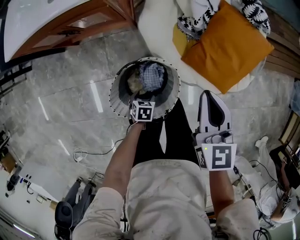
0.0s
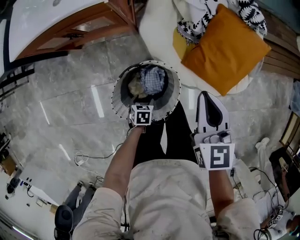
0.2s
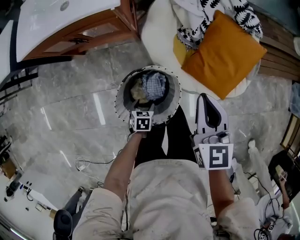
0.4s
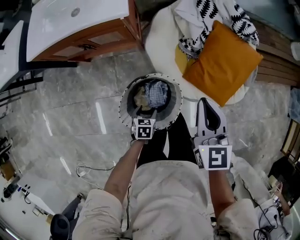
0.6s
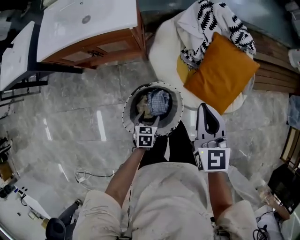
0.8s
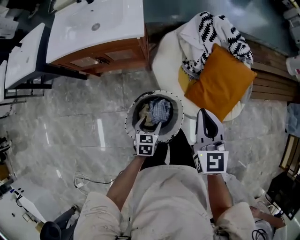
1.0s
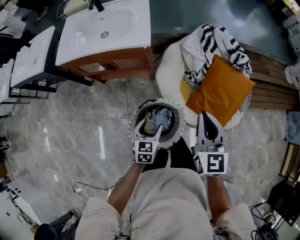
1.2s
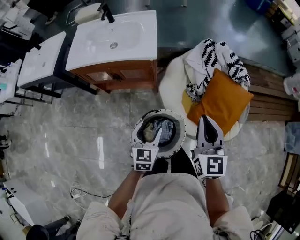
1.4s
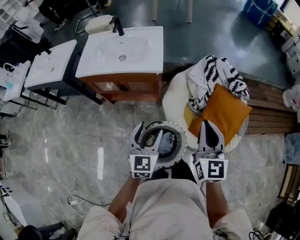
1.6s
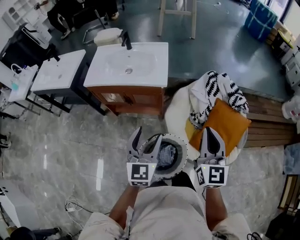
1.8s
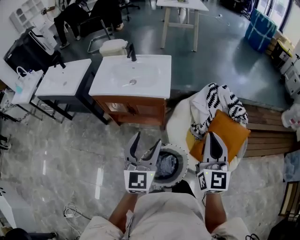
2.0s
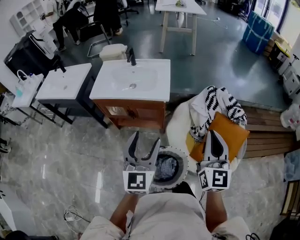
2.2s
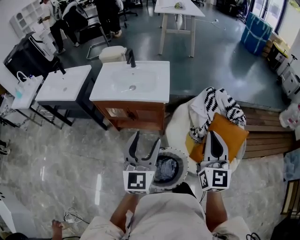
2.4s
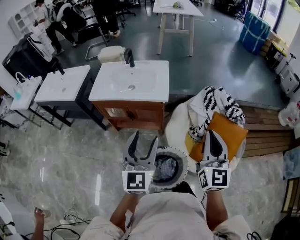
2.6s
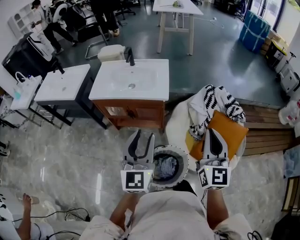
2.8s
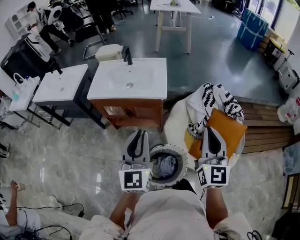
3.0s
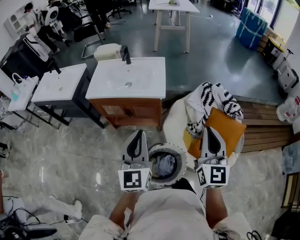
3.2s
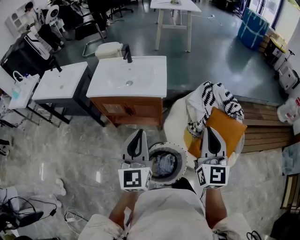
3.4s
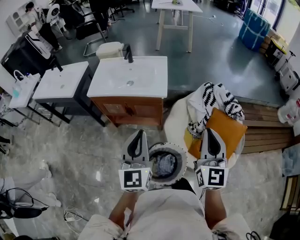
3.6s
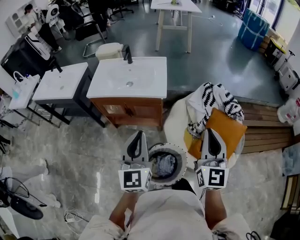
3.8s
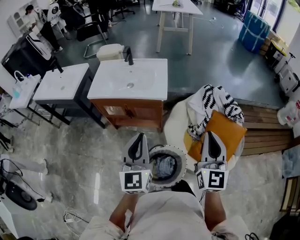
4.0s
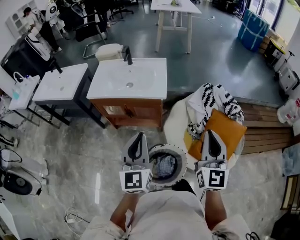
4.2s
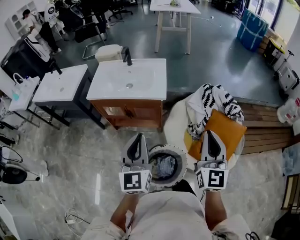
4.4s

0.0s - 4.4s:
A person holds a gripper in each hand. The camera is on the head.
0.0s - 1.4s: The left gripper moves upward, roughly 40 cm, and tips its fingers upward by roughly 50 degrees. The right gripper is displaced upward by some 20 cm.
1.4s - 3.0s: The left gripper is displaced upward by some 25 cm, angles its fingers upward, by roughly 30 degrees, and closes up. Meanwhile the right gripper heads upward, covering roughly 15 cm.
3.0s - 4.4s: There are only small adjustments of the grippers.

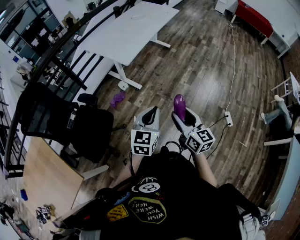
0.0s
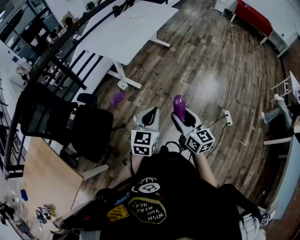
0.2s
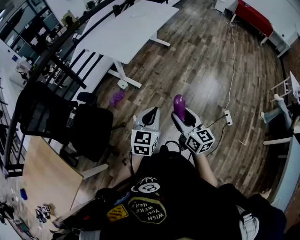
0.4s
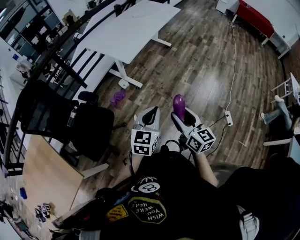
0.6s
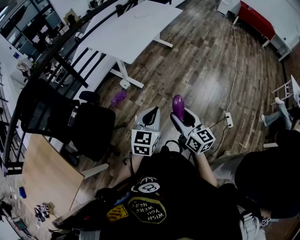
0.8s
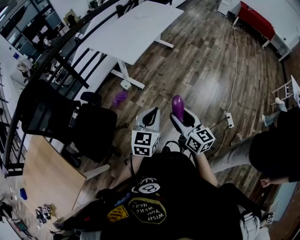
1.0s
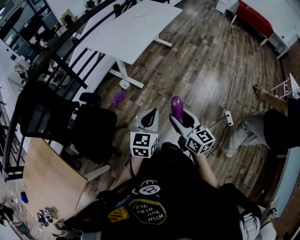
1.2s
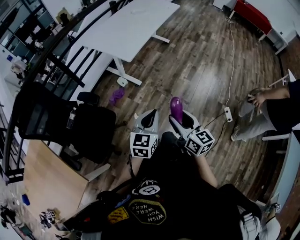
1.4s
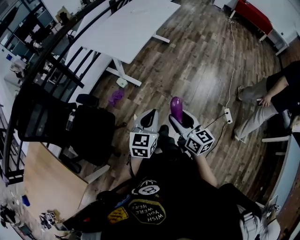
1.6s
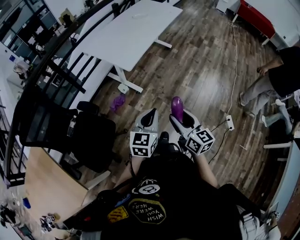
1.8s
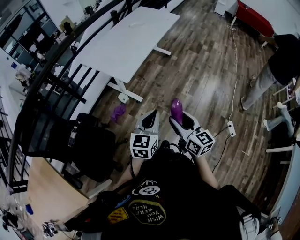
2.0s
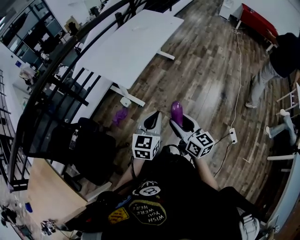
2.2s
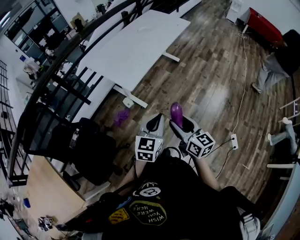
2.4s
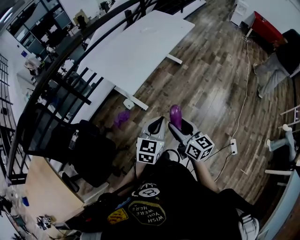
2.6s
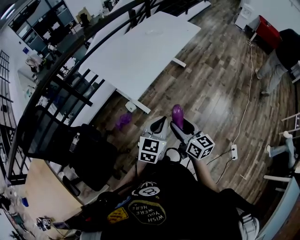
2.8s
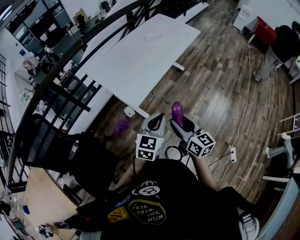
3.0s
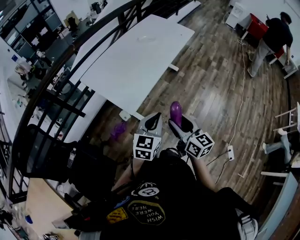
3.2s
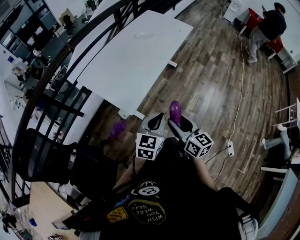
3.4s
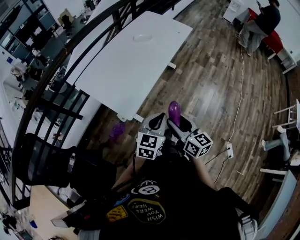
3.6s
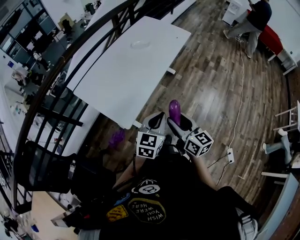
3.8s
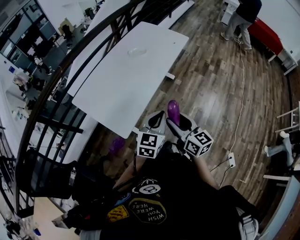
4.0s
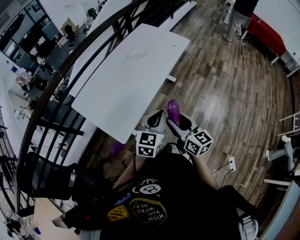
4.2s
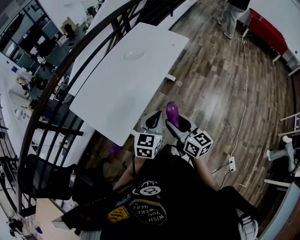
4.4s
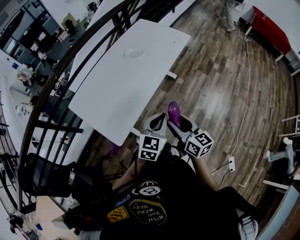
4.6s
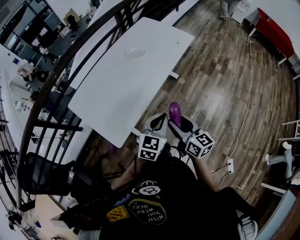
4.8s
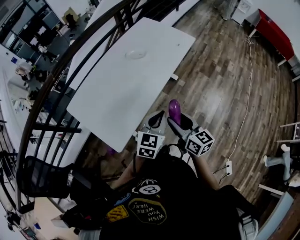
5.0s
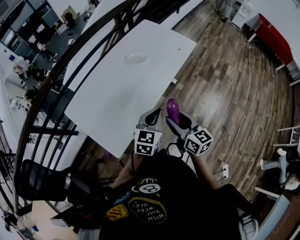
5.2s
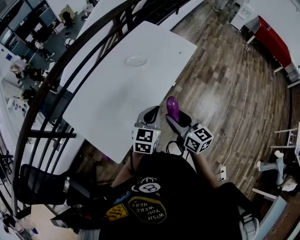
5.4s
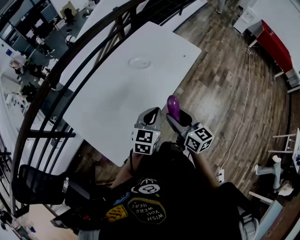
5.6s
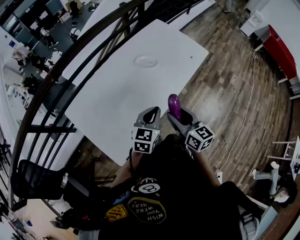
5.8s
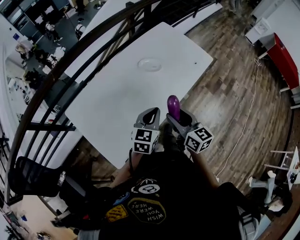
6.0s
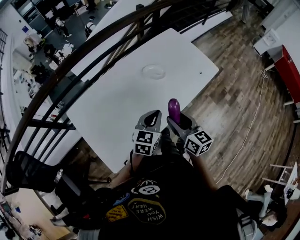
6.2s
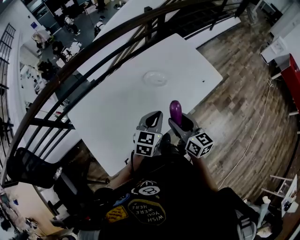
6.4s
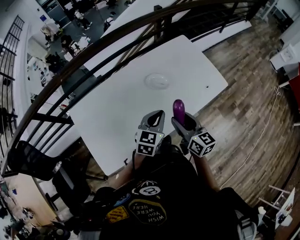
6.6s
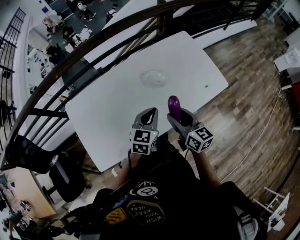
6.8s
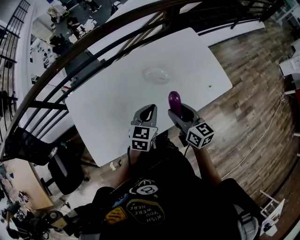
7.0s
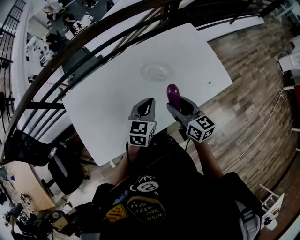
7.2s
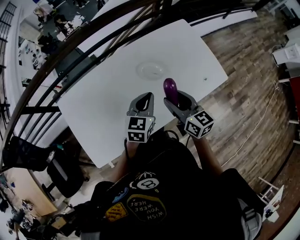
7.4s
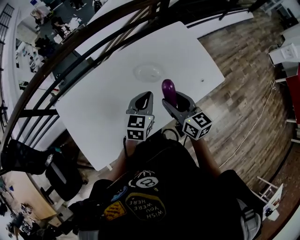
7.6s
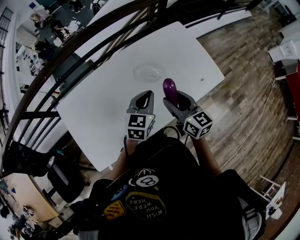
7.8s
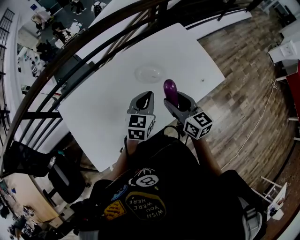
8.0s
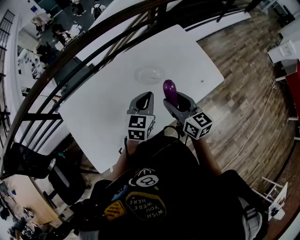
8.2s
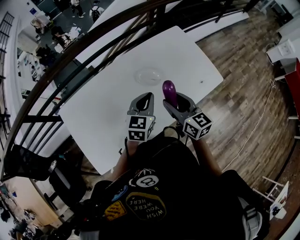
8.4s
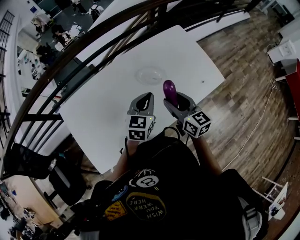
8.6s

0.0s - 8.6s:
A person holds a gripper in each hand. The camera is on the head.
0.0s - 1.4s: Both grippers move to the left, about 5 cm.
1.4s - 2.8s: The two grippers go about 30 cm forward.
2.8s - 4.4s: The grippers both shift forward by some 35 cm.
4.4s - 5.8s: The grippers both shift forward by roughly 25 cm.
5.8s - 7.2s: Both grippers move forward, about 20 cm. The right gripper rotates some 20 degrees, while the left gripper swivels roughly 20 degrees.
7.2s - 8.6s: The grippers move only a little.

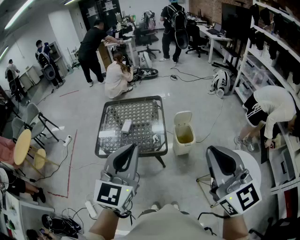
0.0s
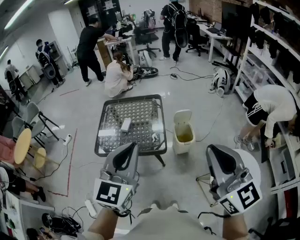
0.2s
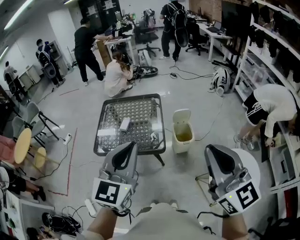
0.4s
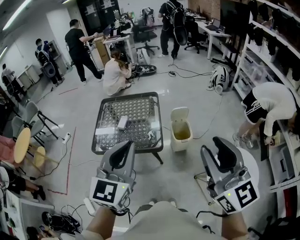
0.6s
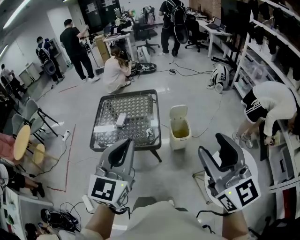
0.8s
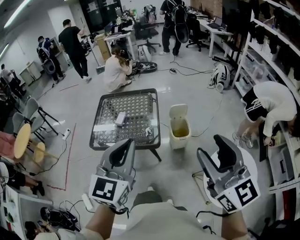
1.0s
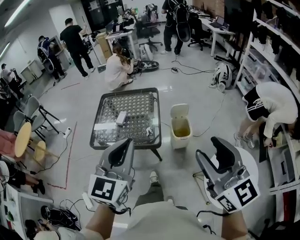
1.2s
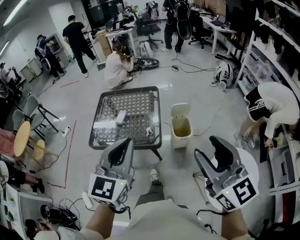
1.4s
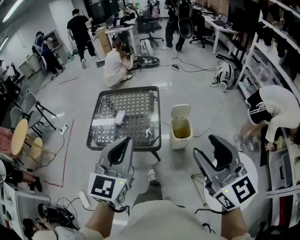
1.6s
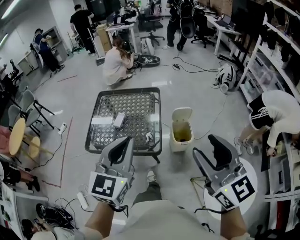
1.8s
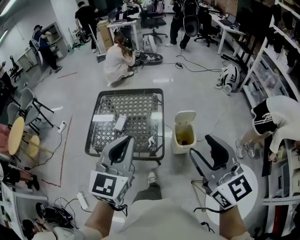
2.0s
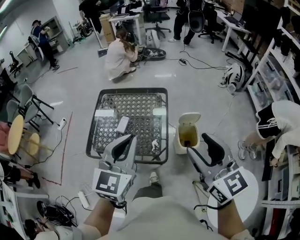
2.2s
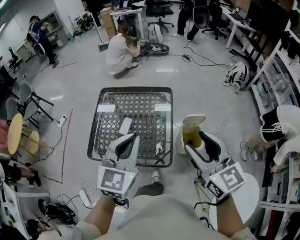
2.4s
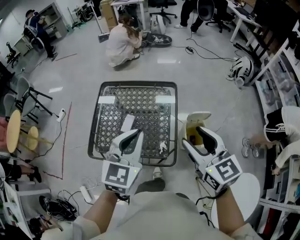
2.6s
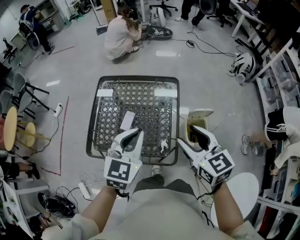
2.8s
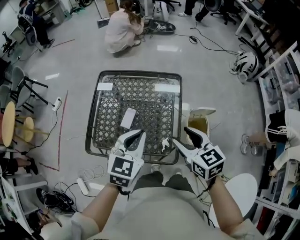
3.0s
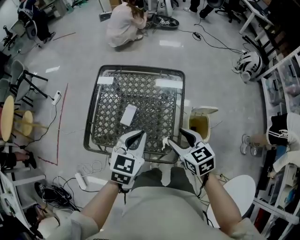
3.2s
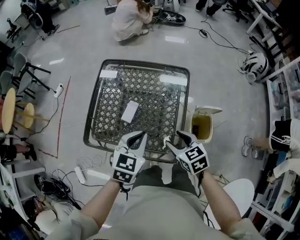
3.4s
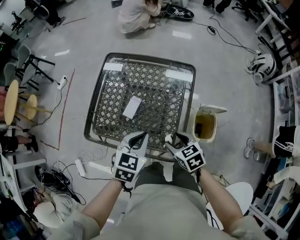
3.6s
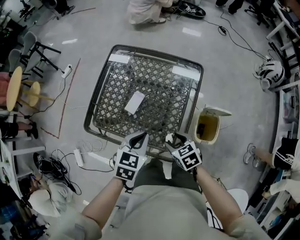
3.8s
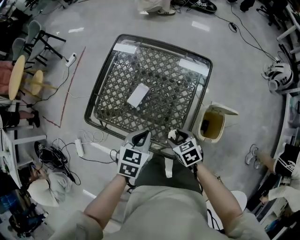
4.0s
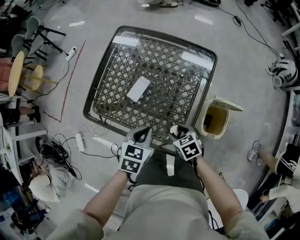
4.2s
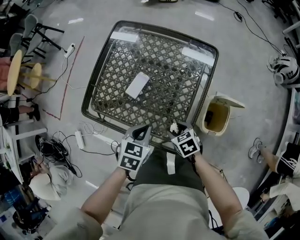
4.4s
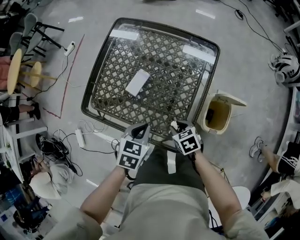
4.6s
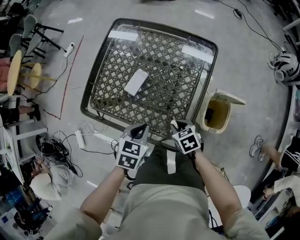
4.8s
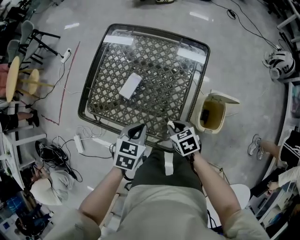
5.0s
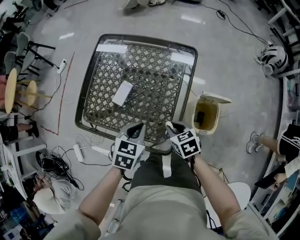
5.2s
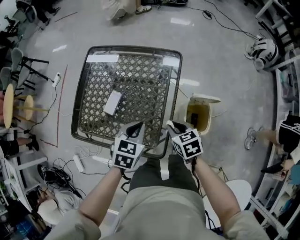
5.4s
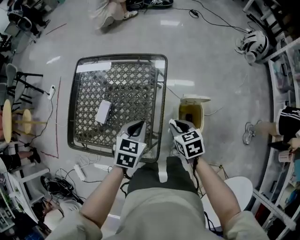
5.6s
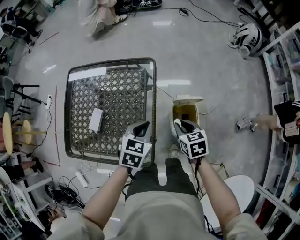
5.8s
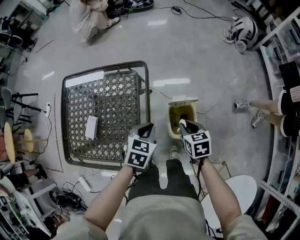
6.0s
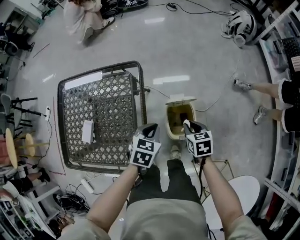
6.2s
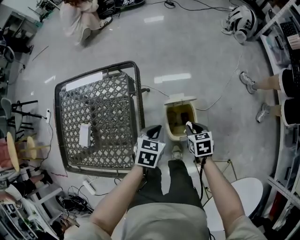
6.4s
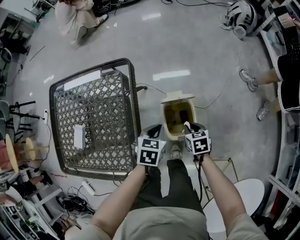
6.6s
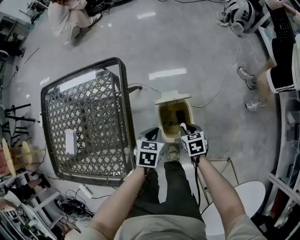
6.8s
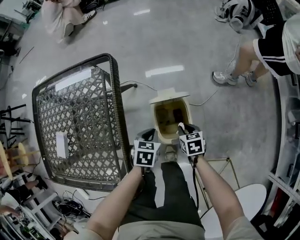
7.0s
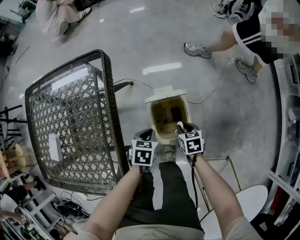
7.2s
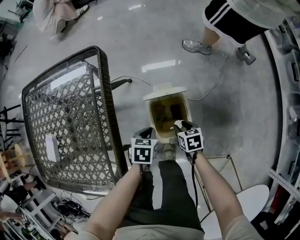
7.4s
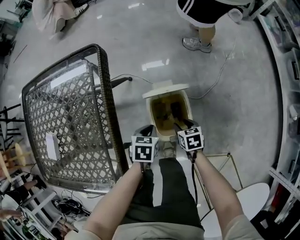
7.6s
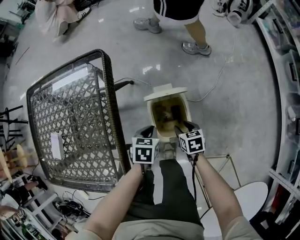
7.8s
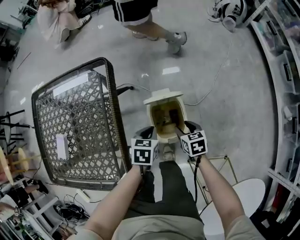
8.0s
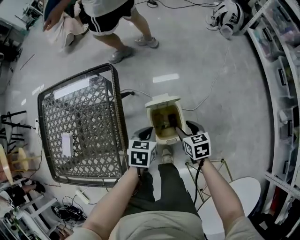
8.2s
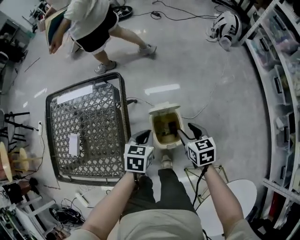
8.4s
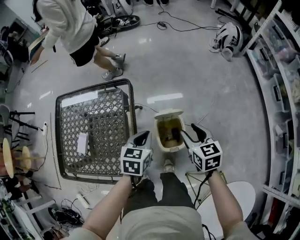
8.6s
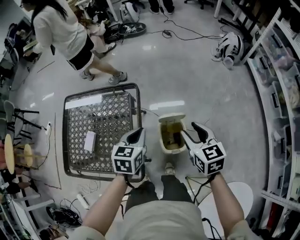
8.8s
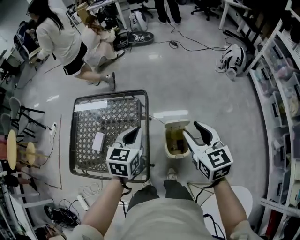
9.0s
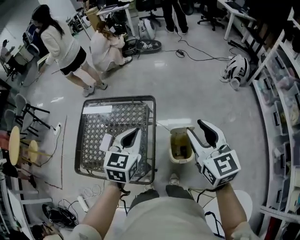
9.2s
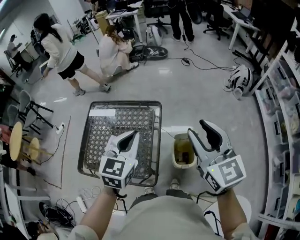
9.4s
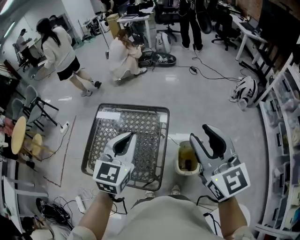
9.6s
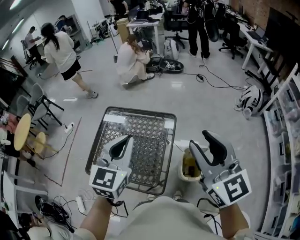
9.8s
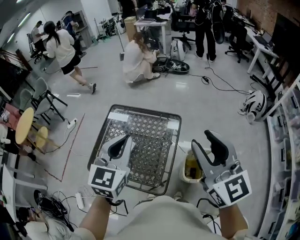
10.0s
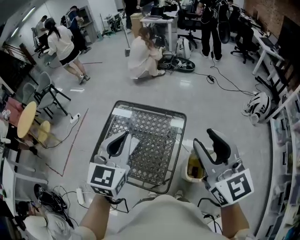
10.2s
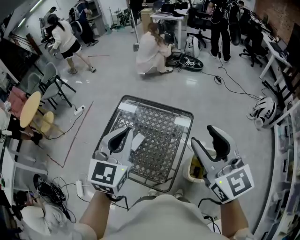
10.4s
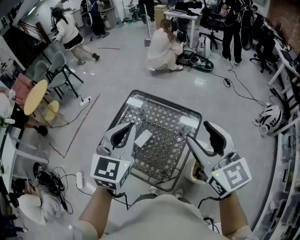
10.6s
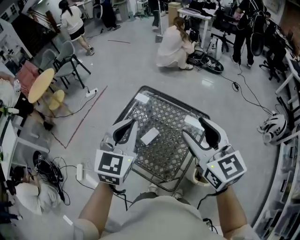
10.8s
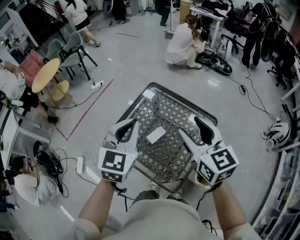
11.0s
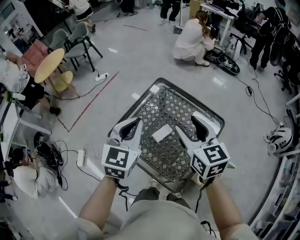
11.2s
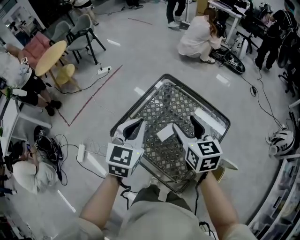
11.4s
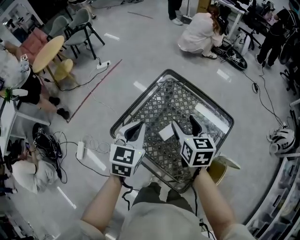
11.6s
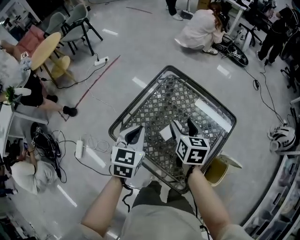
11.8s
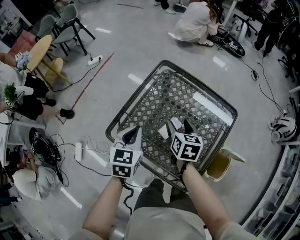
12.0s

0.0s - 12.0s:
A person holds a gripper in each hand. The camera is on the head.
0.0s - 1.6s: The left gripper changes place by about 10 cm, while the right gripper heads forward and downward, covering some 10 cm, and opens up.
1.6s - 3.0s: The right gripper is displaced forward, downward and to the left by some 50 cm, and tilts its fingers some 30 degrees downward, while the left gripper heads forward and downward, covering about 35 cm, and changes its angle by roughly 20 degrees.
3.0s - 4.4s: The grippers both shift downward by roughly 25 cm. The right gripper swivels some 40 degrees. The left gripper rotates approximately 30 degrees.
4.4s - 6.0s: The right gripper changes place by roughly 30 cm, rotates roughly 40 degrees, and closes up. Meanwhile the left gripper ends up approximately 30 cm from where it was, and swivels some 20 degrees.
6.0s - 7.6s: The two grippers go approximately 30 cm downward. The left gripper swivels some 20 degrees.
7.6s - 9.0s: Both grippers move upward, roughly 50 cm. The right gripper tilts its fingers about 40 degrees upward. Meanwhile the left gripper points its fingers roughly 30 degrees further upward.
9.0s - 10.4s: The right gripper moves upward and to the left, roughly 30 cm, and changes its angle by approximately 30 degrees. The left gripper heads to the left and upward, covering roughly 30 cm, and rotates some 30 degrees.
10.4s - 12.0s: The right gripper heads downward, to the left and forward, covering some 50 cm, and points its fingers roughly 40 degrees further downward; the left gripper is displaced downward and to the left by roughly 35 cm, and turns by approximately 30 degrees.
